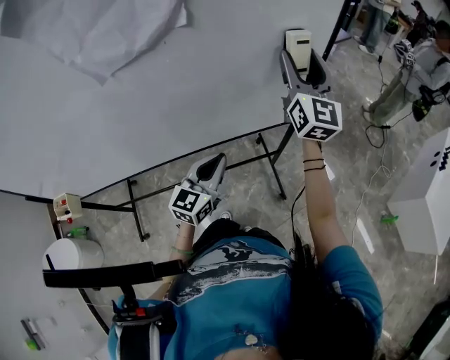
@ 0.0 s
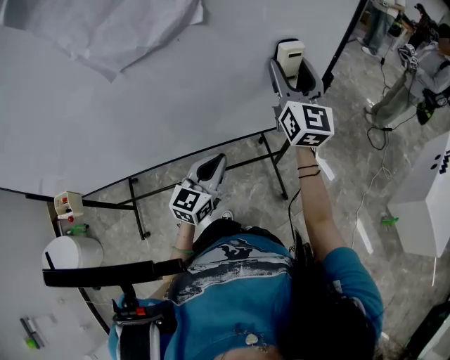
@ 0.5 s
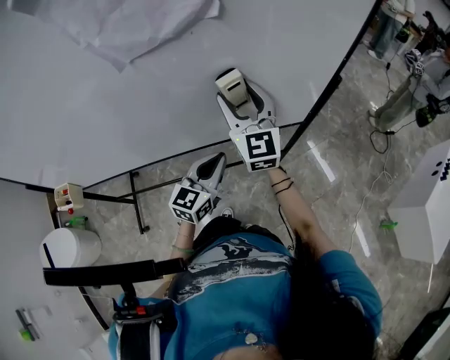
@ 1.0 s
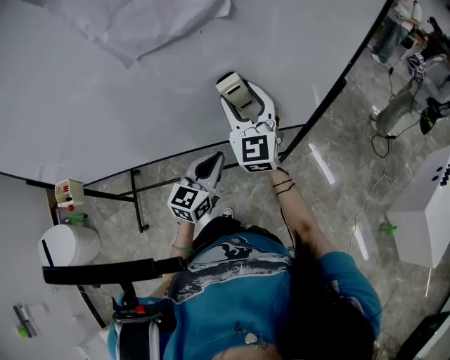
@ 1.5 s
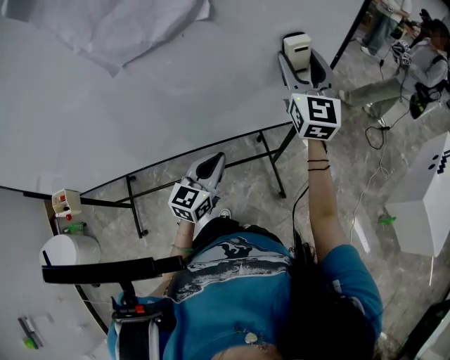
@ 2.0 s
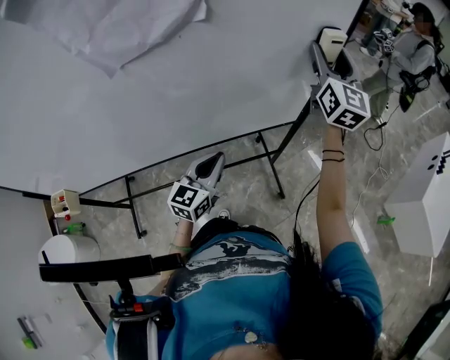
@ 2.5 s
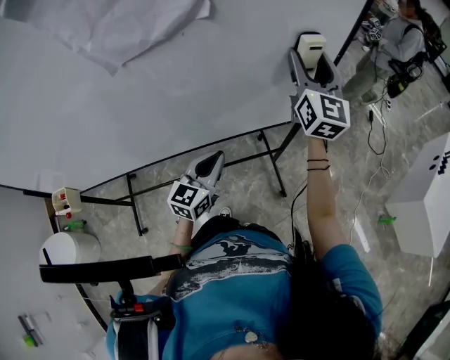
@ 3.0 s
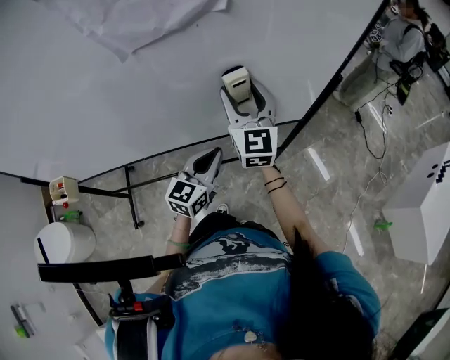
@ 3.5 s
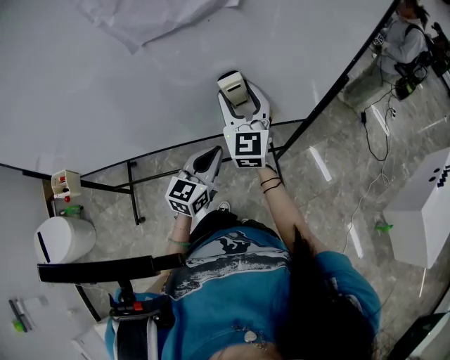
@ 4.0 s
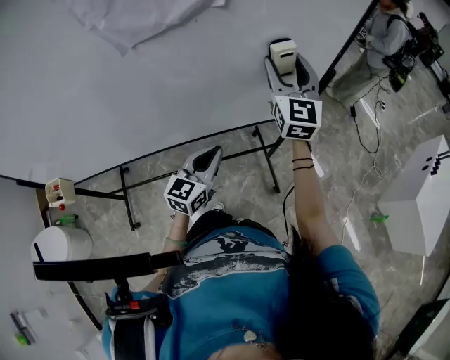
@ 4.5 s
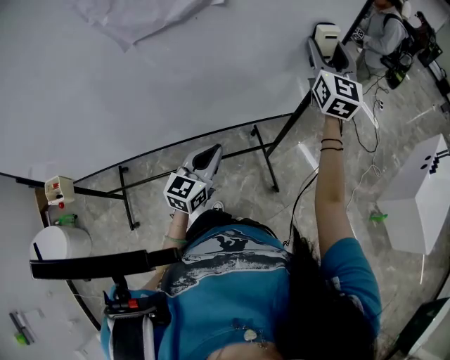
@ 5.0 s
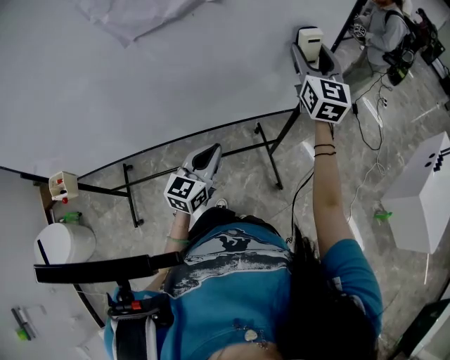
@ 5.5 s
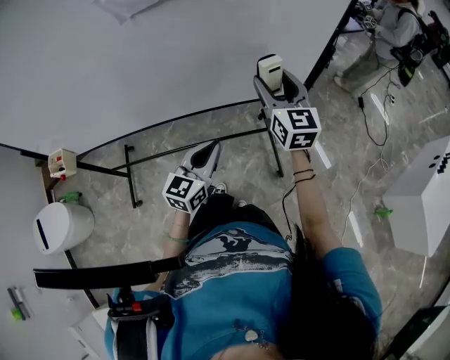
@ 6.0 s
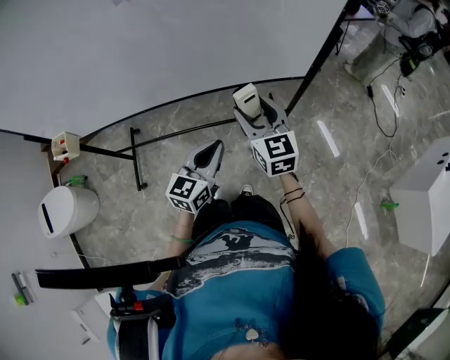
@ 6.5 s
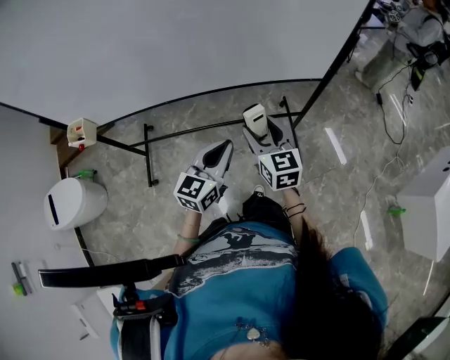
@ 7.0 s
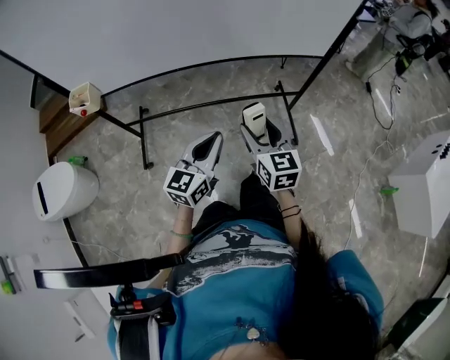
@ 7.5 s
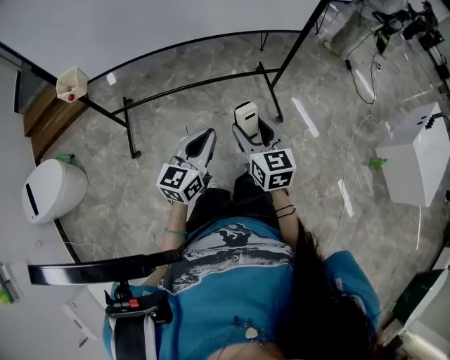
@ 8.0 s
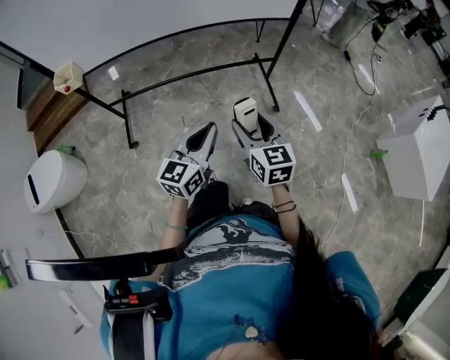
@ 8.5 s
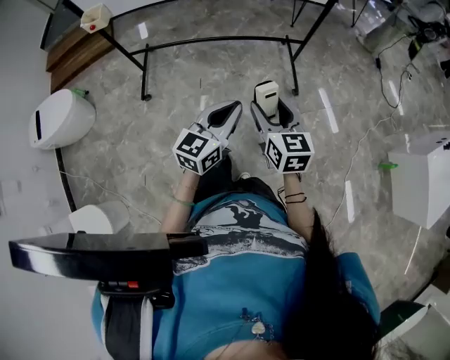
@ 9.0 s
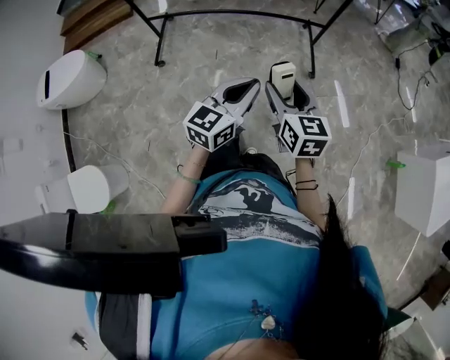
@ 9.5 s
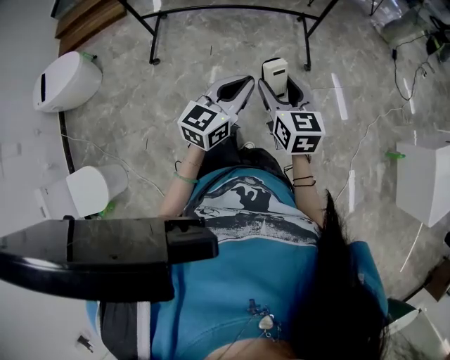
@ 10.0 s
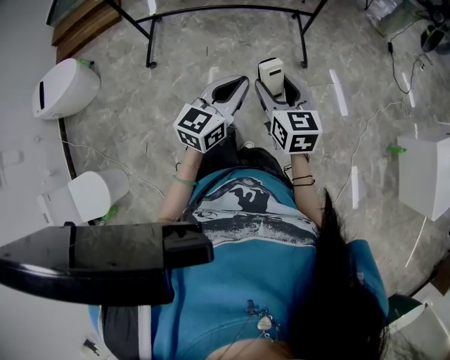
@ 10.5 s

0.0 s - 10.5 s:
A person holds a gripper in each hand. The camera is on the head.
0.0 s - 2.0 s: The right gripper goes to the left and returns, approximately 20 cm each way.
2.0 s - 4.0 s: The right gripper shifts some 20 cm to the left and downward.
4.0 s - 6.5 s: The right gripper heads backward, to the right and downward, covering about 20 cm, and turns by some 30 degrees; the left gripper travels backward and to the right by some 15 cm.
6.5 s - 8.5 s: The two grippers go about 40 cm backward.
8.5 s - 10.5 s: The left gripper heads backward and to the right, covering approximately 20 cm; the right gripper heads backward, covering approximately 15 cm.

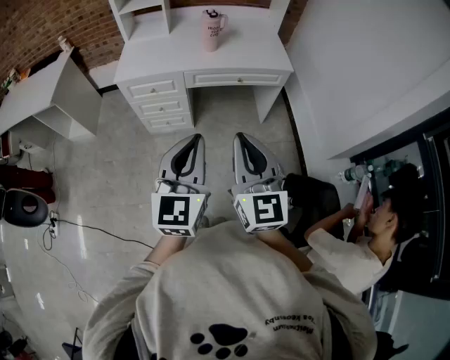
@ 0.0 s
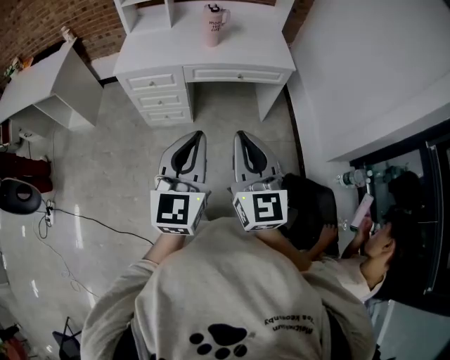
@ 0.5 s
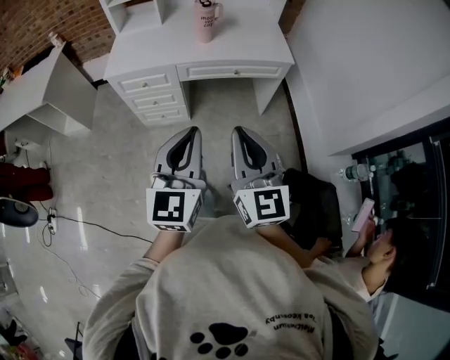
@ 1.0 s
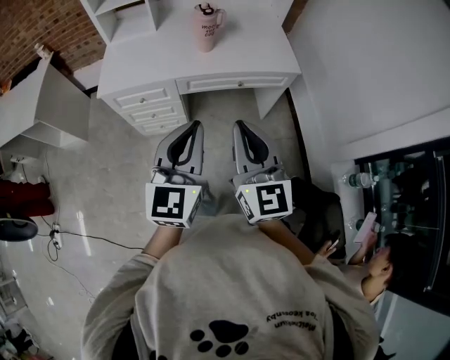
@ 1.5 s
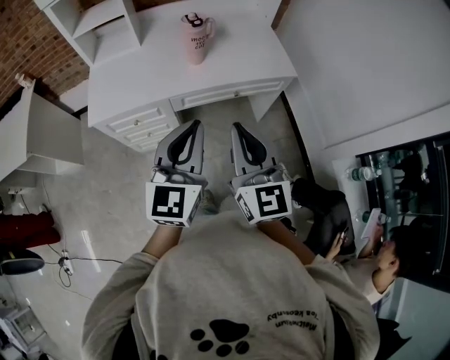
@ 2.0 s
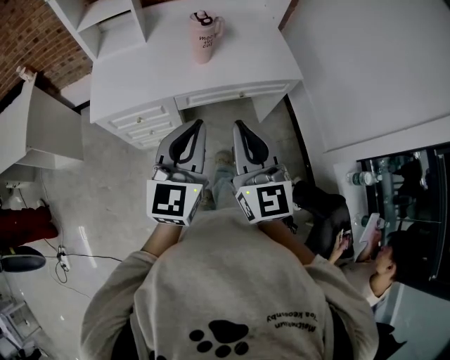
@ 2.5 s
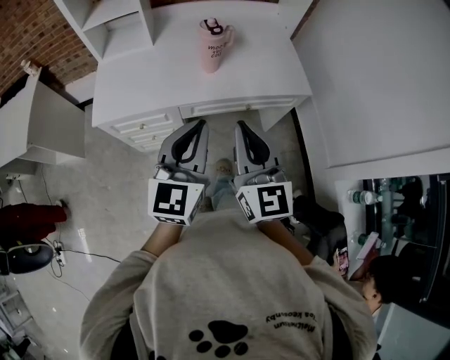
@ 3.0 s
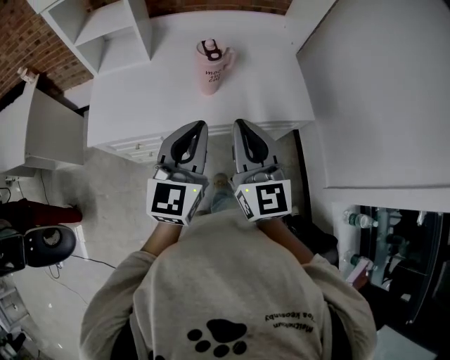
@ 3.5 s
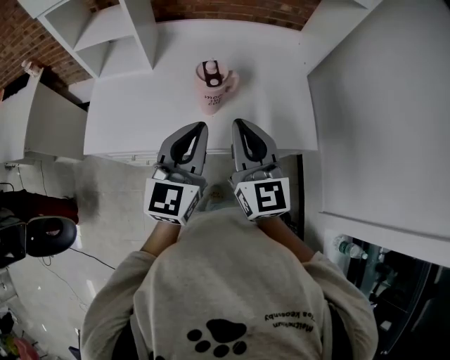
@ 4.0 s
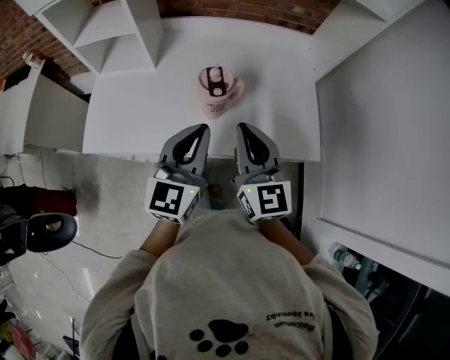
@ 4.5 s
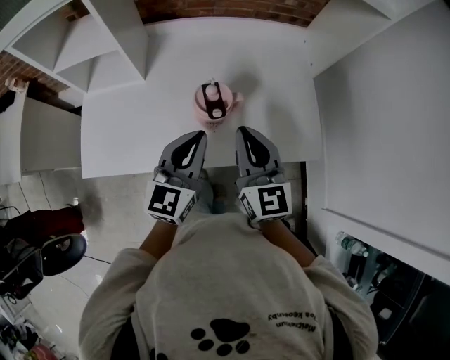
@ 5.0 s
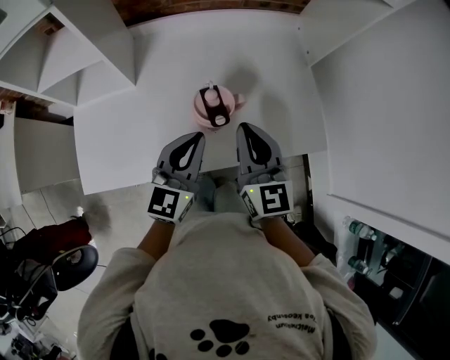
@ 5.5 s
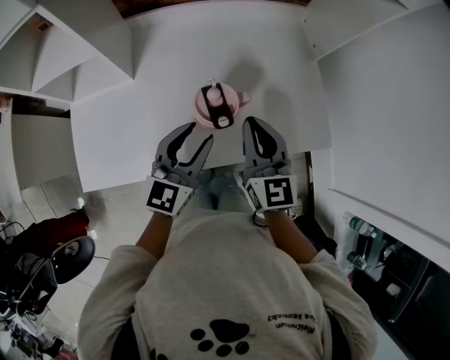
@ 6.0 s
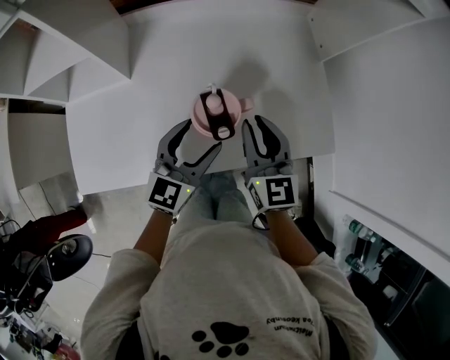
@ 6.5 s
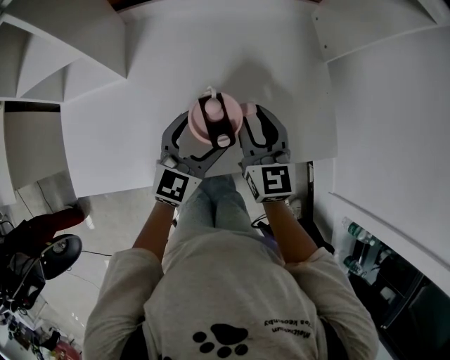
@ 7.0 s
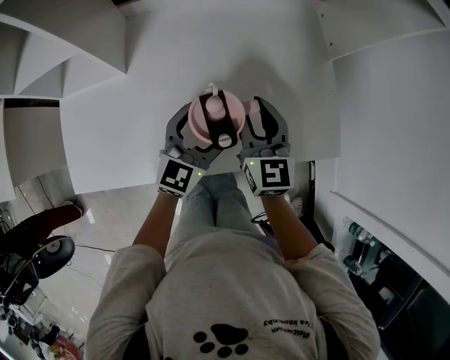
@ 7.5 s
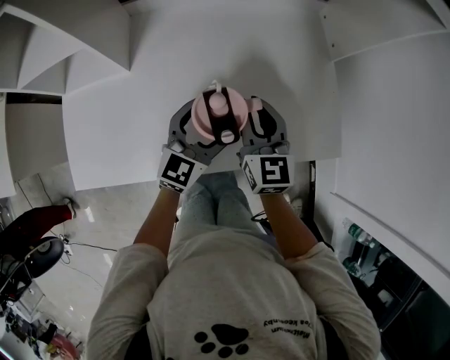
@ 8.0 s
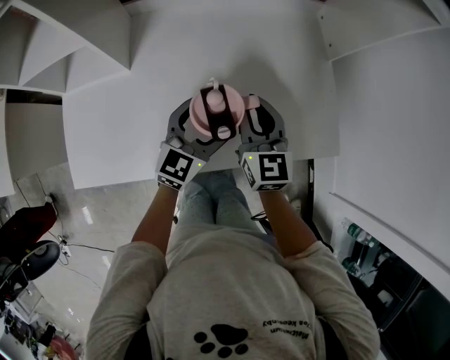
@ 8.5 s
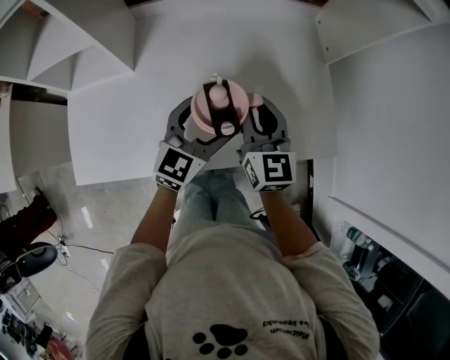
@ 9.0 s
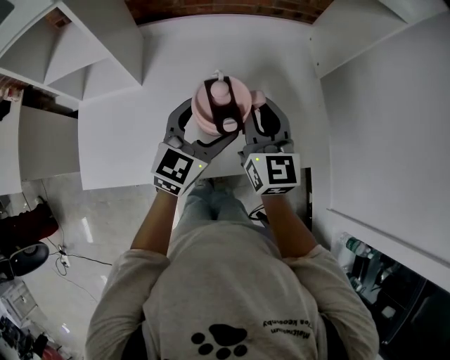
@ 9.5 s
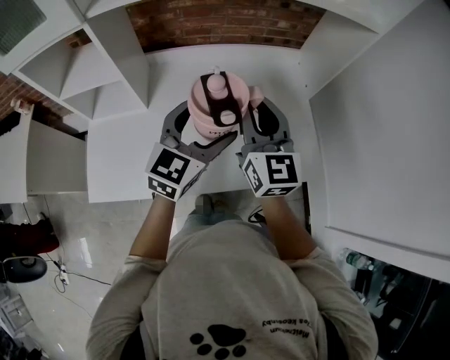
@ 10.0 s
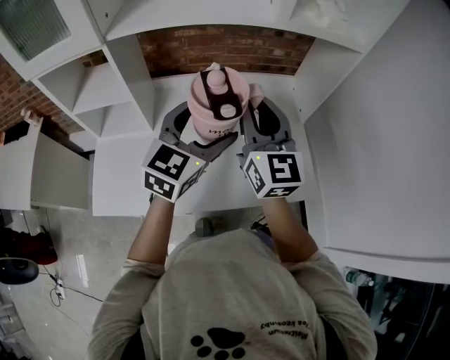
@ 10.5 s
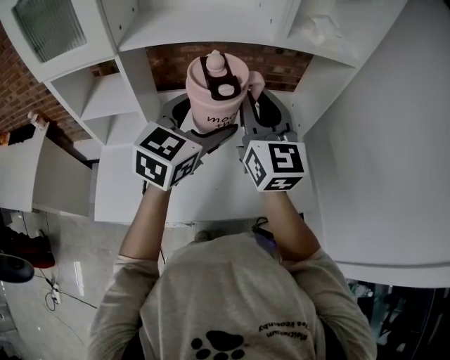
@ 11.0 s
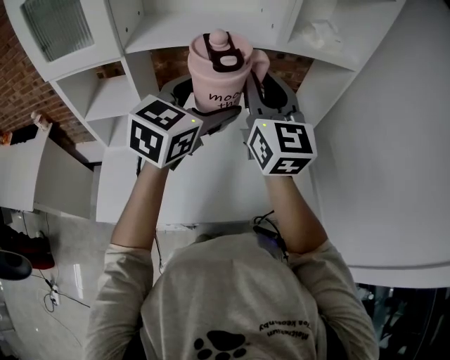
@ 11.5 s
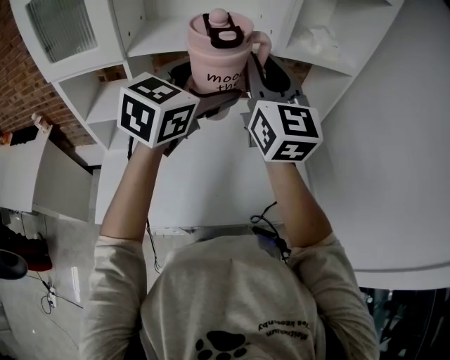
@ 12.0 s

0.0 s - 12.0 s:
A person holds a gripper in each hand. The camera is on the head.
0.0 s - 2.0 s: The two grippers go approximately 25 cm forward.
2.0 s - 4.0 s: The two grippers go about 30 cm forward.
4.0 s - 6.0 s: Both grippers move forward and downward, roughly 15 cm. The left gripper opens.
6.0 s - 8.0 s: Both grippers travel together downward and forward, roughly 10 cm. The left gripper opens up.
8.0 s - 10.0 s: Both grippers travel together upward, about 20 cm.
10.0 s - 12.0 s: The grippers both shift upward by about 20 cm.

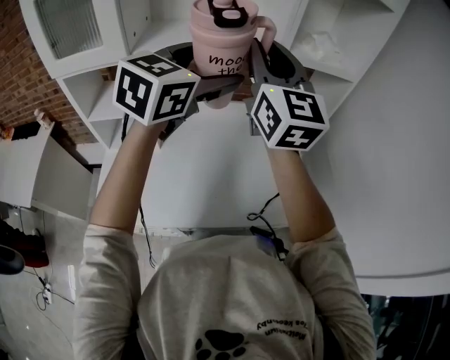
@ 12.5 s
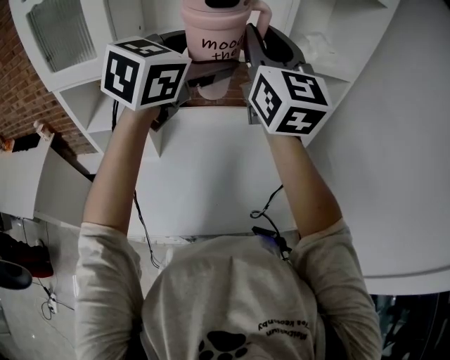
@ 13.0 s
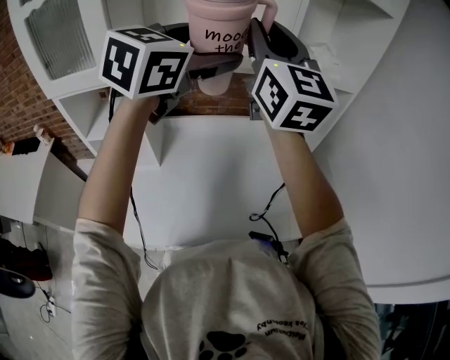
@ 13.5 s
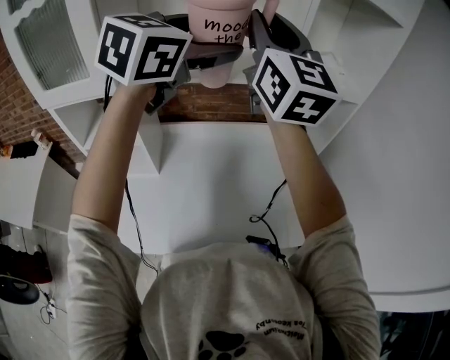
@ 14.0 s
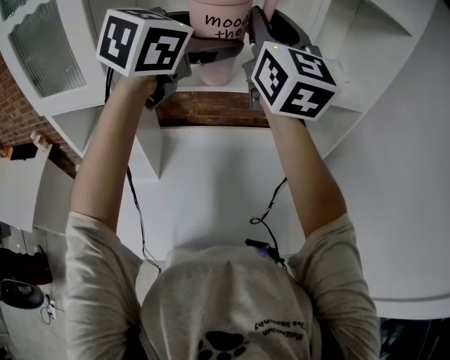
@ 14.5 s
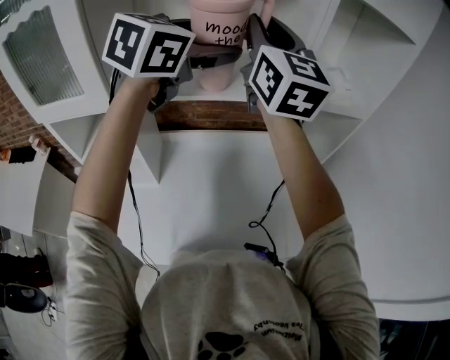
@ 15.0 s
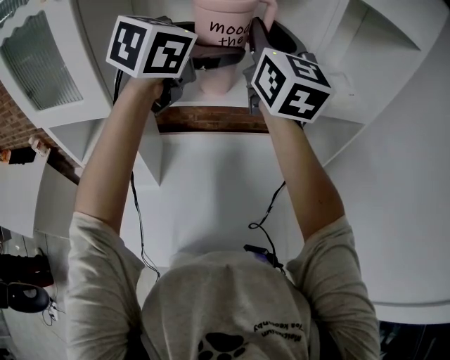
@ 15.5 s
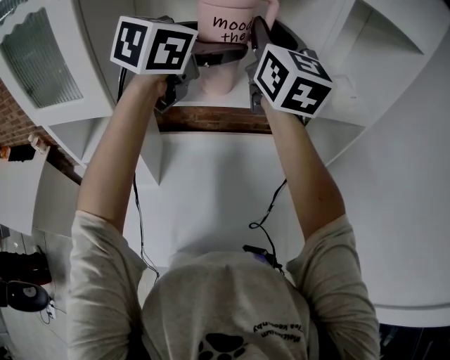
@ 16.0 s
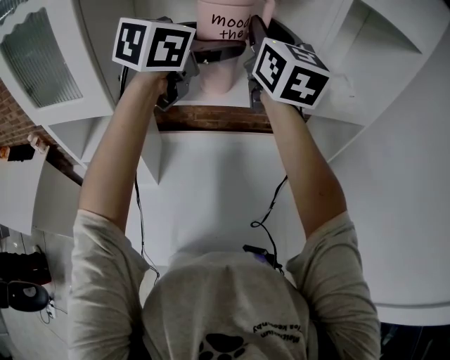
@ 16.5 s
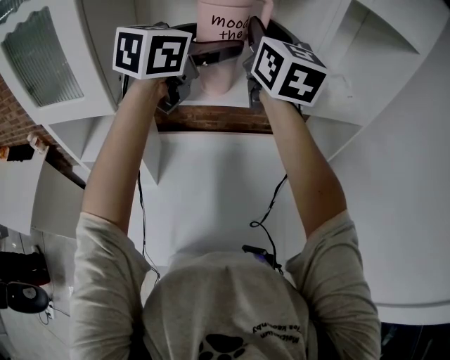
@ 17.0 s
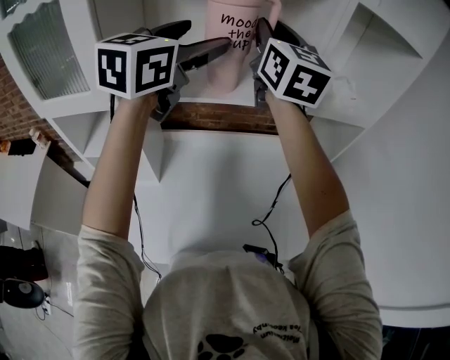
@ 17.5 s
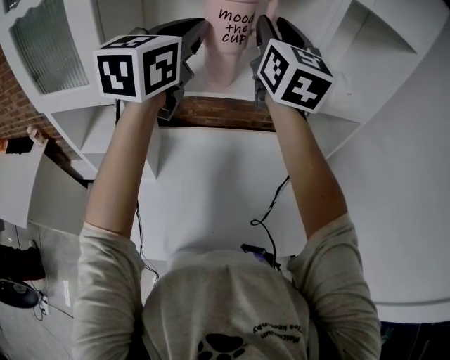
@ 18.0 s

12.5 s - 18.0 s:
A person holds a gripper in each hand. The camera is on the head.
12.5 s - 14.5 s: The grippers both shift forward and upward by roughly 15 cm.
14.5 s - 16.0 s: The right gripper ends up roughly 5 cm from where it was.
16.0 s - 18.0 s: The left gripper ends up about 5 cm from where it was, swivels some 20 degrees, and closes up.
